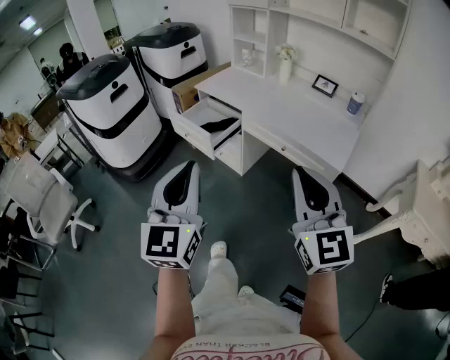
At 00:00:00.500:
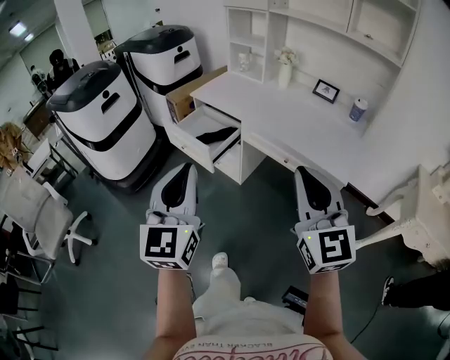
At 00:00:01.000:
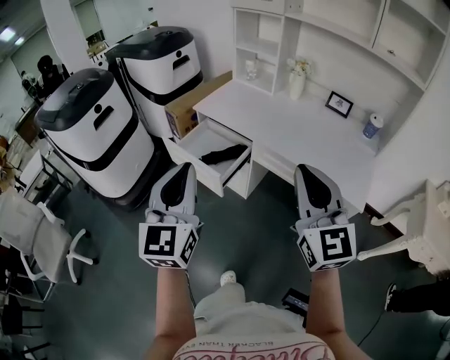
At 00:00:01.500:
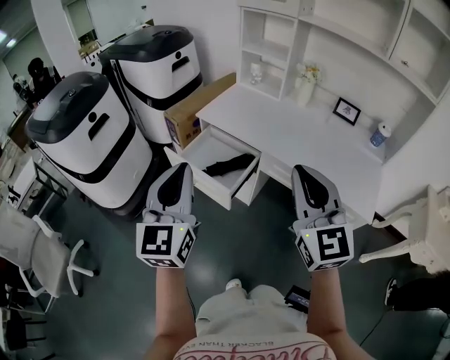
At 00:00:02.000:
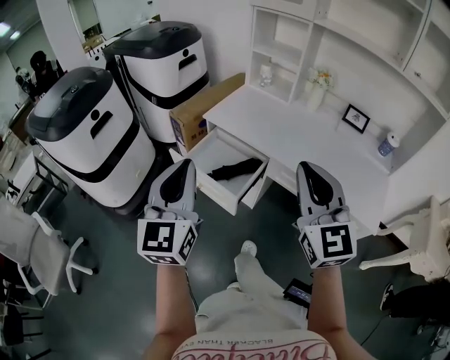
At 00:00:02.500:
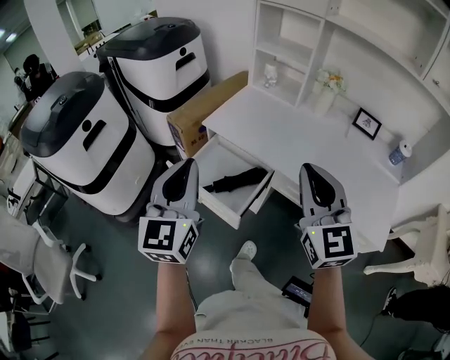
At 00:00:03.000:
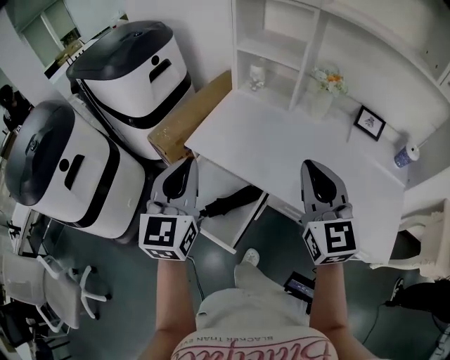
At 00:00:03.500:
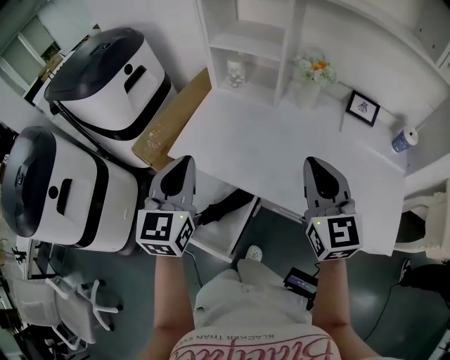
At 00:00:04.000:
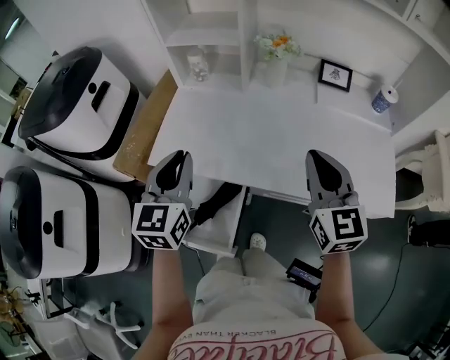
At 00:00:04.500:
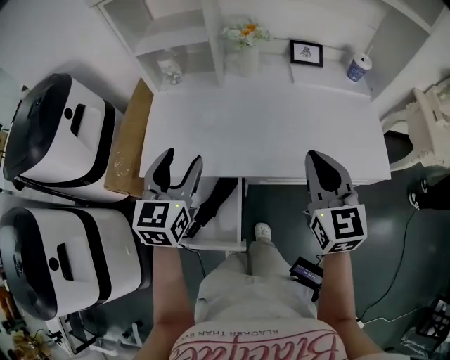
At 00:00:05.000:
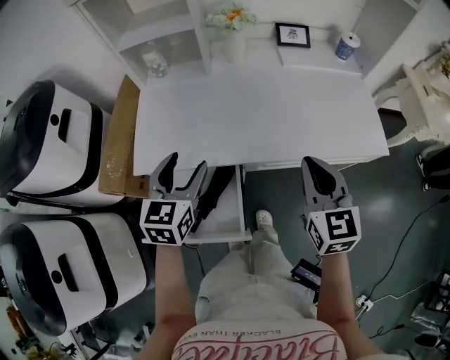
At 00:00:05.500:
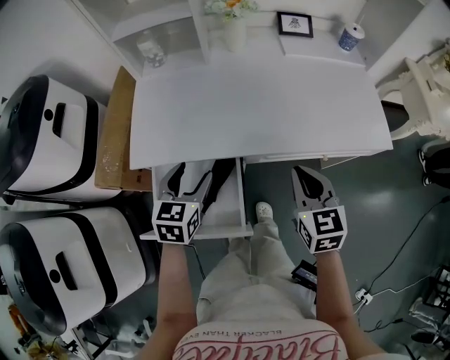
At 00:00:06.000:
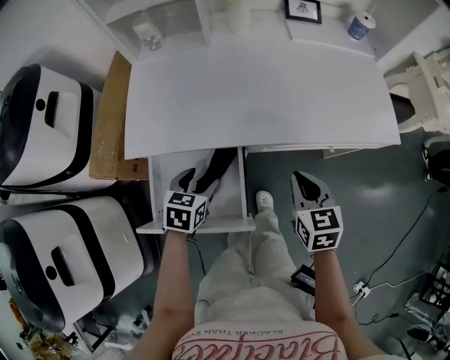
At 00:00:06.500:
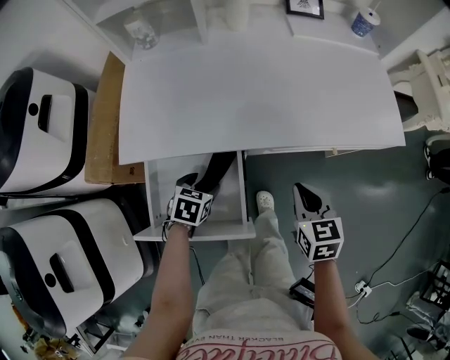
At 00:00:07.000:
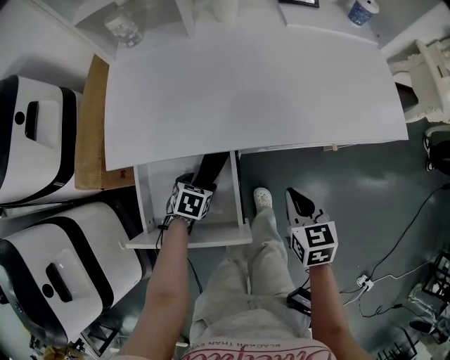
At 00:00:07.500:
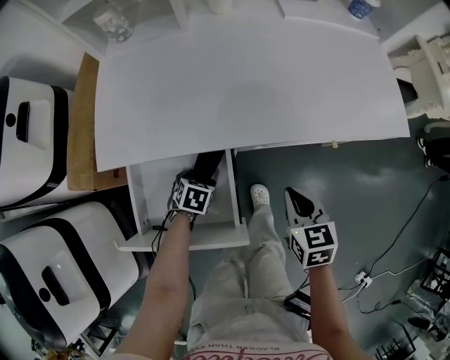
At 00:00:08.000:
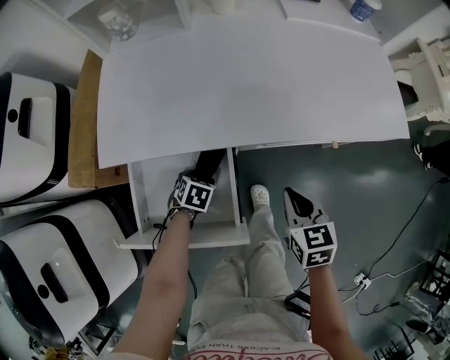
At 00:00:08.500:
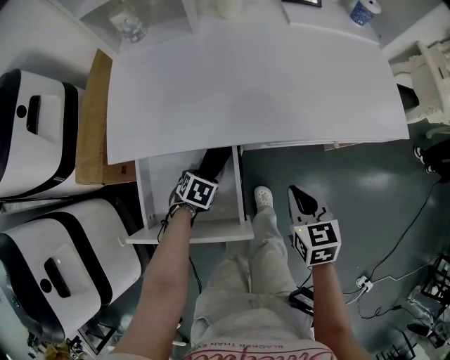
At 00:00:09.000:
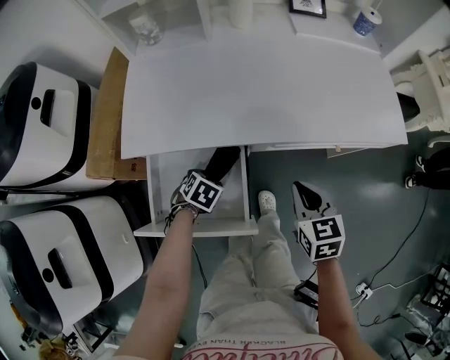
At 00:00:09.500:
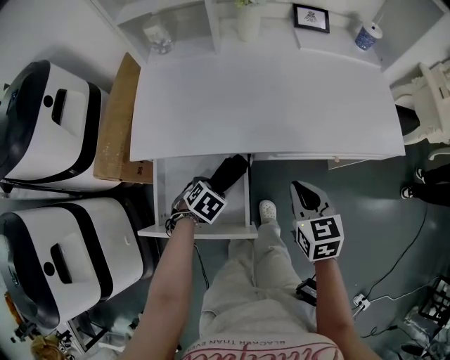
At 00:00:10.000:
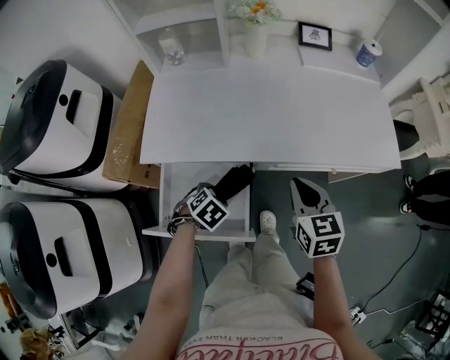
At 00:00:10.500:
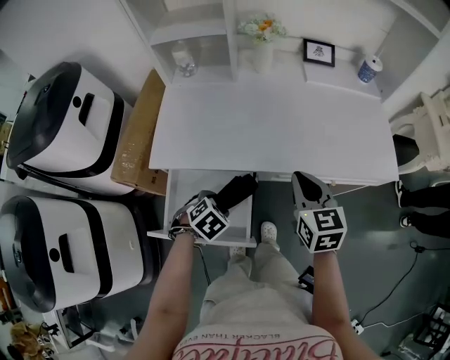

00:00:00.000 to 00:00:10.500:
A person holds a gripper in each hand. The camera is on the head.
00:00:00.000 to 00:00:02.000: The grippers both shift forward and to the left by about 40 cm.
00:00:02.000 to 00:00:04.000: The right gripper is displaced forward, to the right and downward by roughly 30 cm, and swivels about 30 degrees, while the left gripper travels forward by roughly 35 cm, and swivels roughly 30 degrees.
00:00:04.000 to 00:00:06.500: Both grippers travel together downward, roughly 30 cm. The right gripper tips its fingers downward by about 30 degrees, while the left gripper tips its fingers downward by about 50 degrees, and opens up.
00:00:06.500 to 00:00:08.500: The left gripper goes some 10 cm downward.
00:00:08.500 to 00:00:10.500: The grippers both shift upward by roughly 15 cm.

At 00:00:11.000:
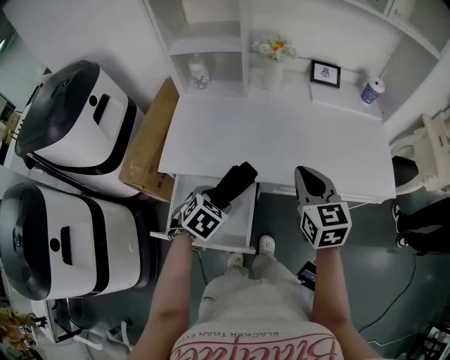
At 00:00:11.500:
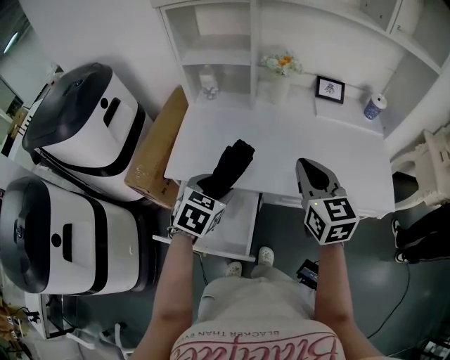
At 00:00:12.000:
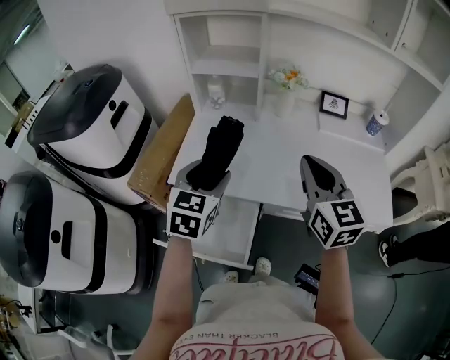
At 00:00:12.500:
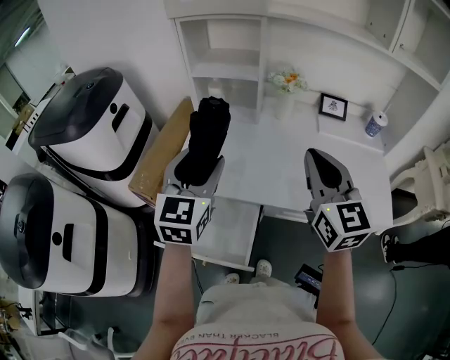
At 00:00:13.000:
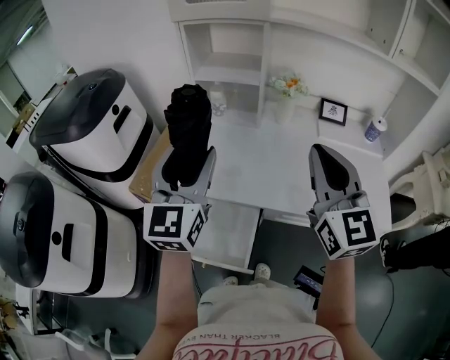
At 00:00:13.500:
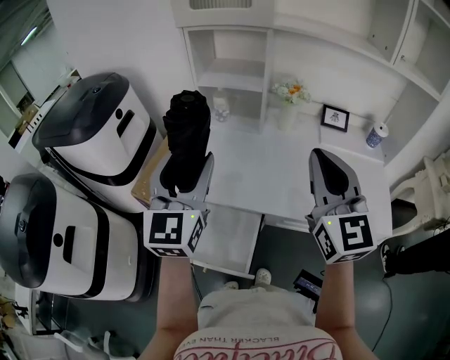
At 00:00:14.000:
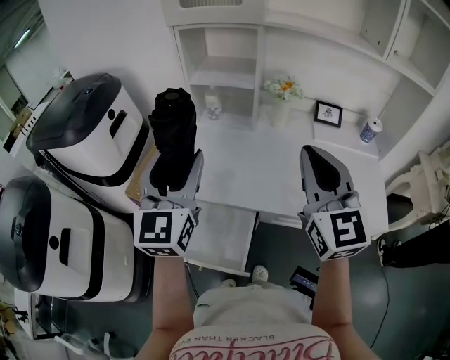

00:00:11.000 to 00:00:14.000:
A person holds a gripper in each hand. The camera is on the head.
00:00:11.000 to 00:00:12.500: The right gripper is displaced upward by roughly 15 cm, and swivels roughly 20 degrees; the left gripper is displaced upward by some 25 cm, and points its fingers approximately 50 degrees further upward.
00:00:12.500 to 00:00:14.000: The two grippers go approximately 5 cm upward.

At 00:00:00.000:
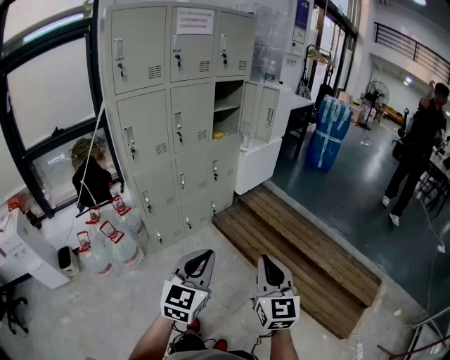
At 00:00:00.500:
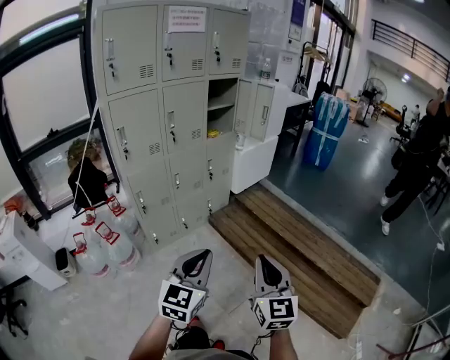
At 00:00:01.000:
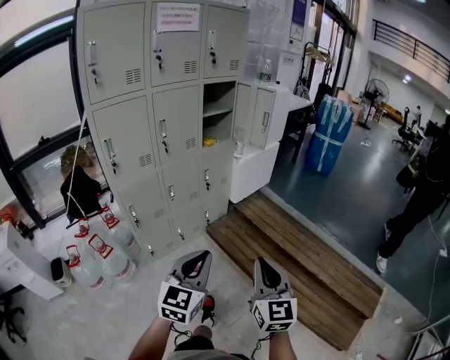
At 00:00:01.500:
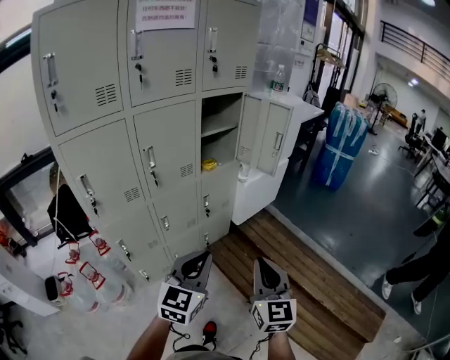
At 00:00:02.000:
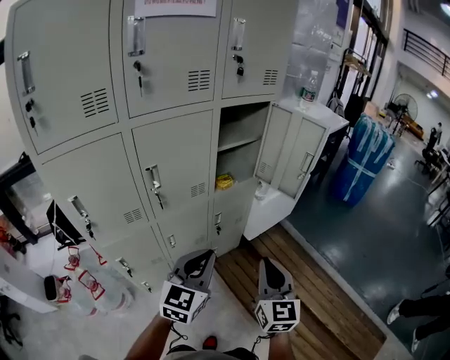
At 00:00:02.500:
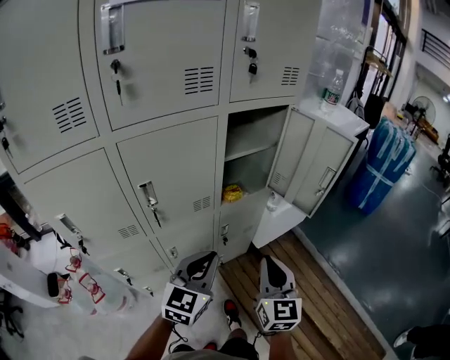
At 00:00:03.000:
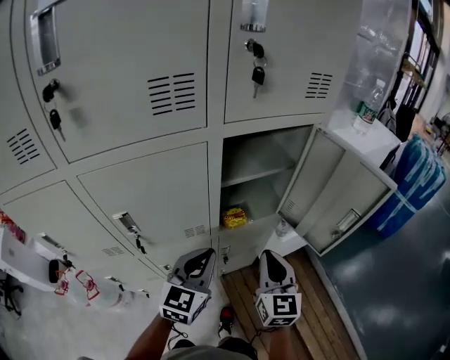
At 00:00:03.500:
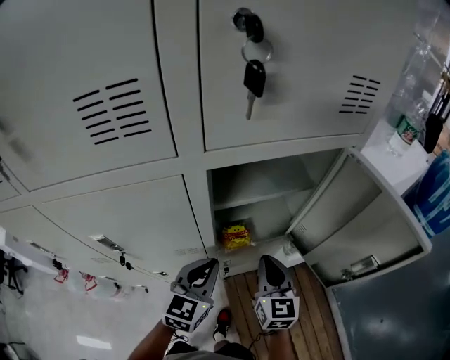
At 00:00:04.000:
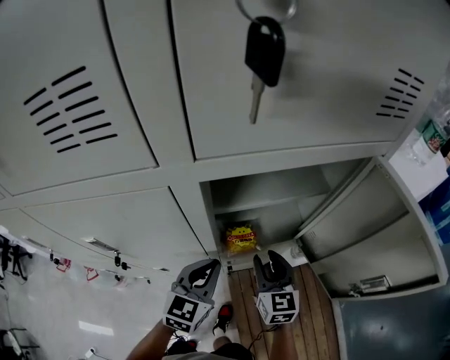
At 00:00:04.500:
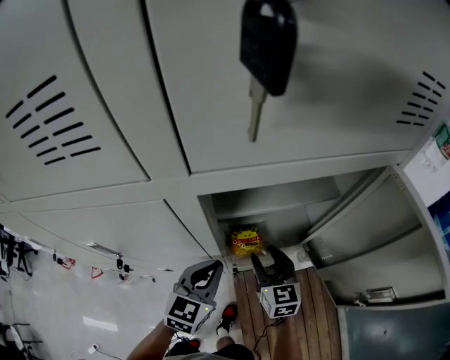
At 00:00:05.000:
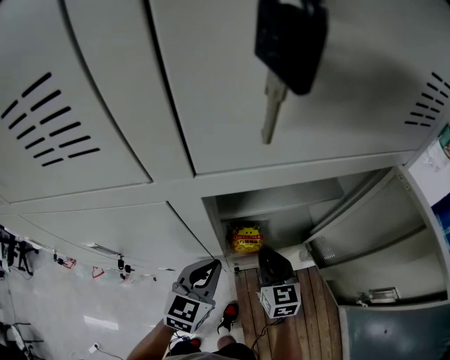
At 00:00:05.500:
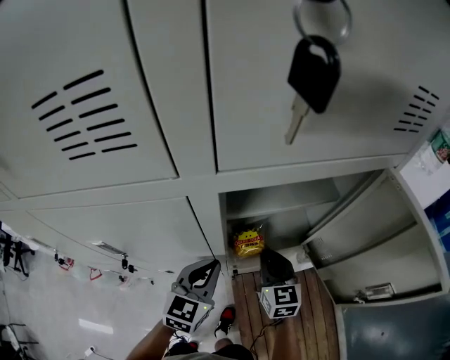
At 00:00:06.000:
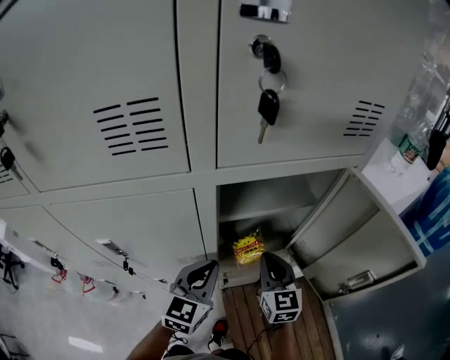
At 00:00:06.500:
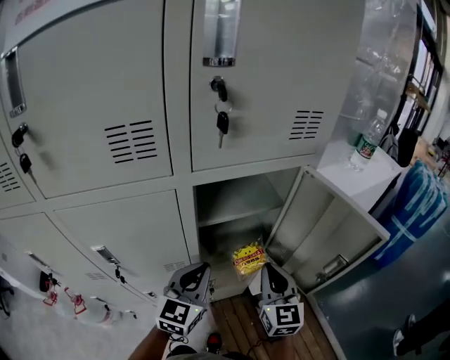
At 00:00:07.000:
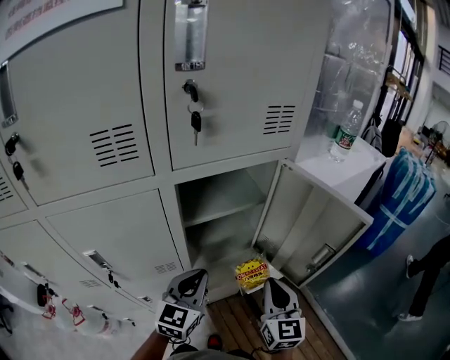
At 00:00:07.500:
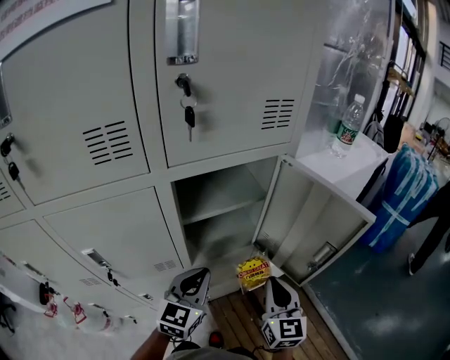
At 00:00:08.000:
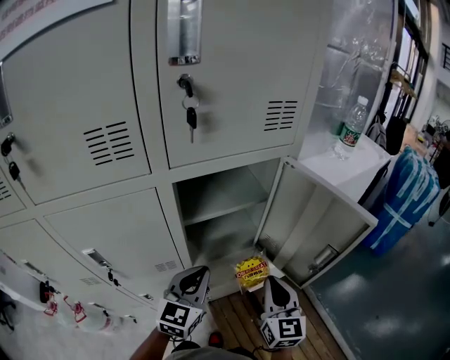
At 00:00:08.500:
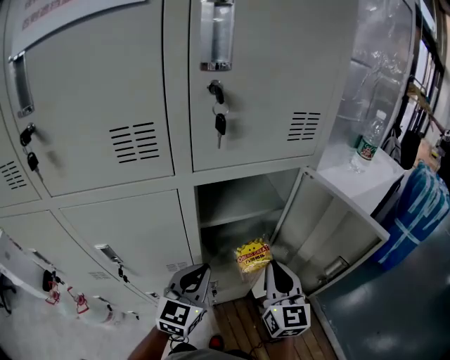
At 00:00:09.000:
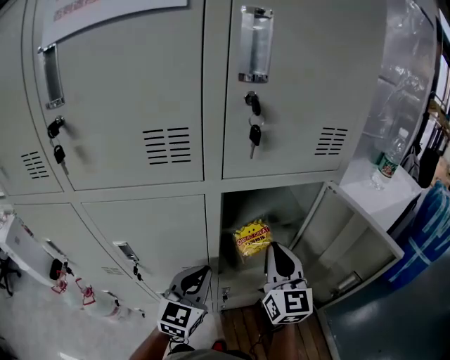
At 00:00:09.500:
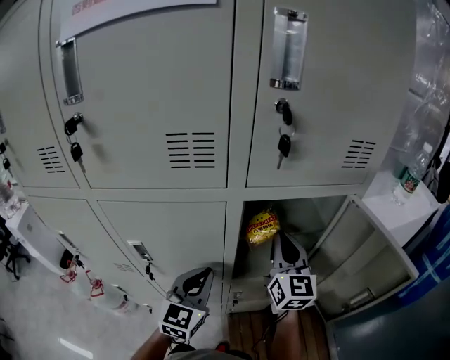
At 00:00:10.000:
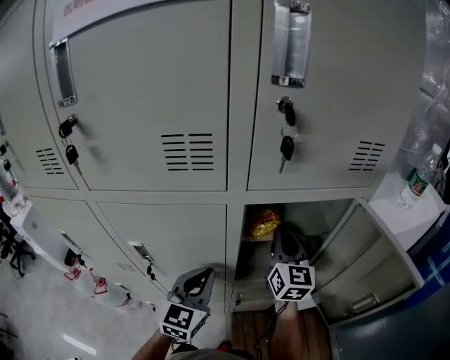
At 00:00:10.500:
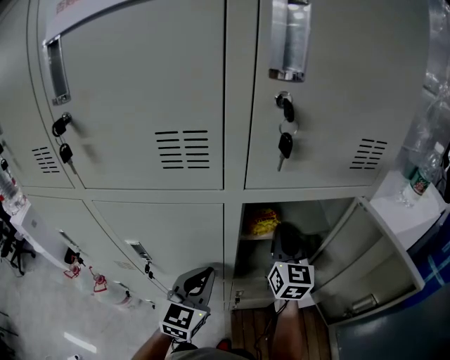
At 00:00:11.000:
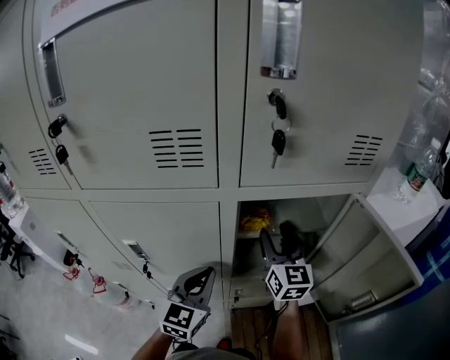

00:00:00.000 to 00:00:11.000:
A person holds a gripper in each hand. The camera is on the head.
00:00:00.000 to 00:00:02.000: The two grippers travel together, forward, some 50 cm.
00:00:02.000 to 00:00:03.500: The grippers both shift forward by roughly 35 cm. The right gripper turns by about 20 degrees. Meanwhile the left gripper swivels about 20 degrees.
00:00:03.500 to 00:00:05.500: The left gripper shifts by roughly 5 cm. The right gripper heads forward and downward, covering some 10 cm, and opens, then closes again.
00:00:05.500 to 00:00:07.500: The left gripper heads to the right and upward, covering approximately 10 cm; the right gripper is displaced to the right, backward and upward by roughly 25 cm, and swivels some 30 degrees.
00:00:07.500 to 00:00:09.000: The right gripper is displaced to the left, upward and forward by roughly 20 cm. The left gripper shifts roughly 10 cm to the left.
00:00:09.000 to 00:00:11.000: The right gripper moves forward, approximately 10 cm, and opens up.

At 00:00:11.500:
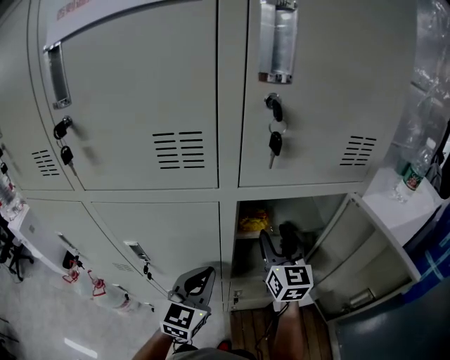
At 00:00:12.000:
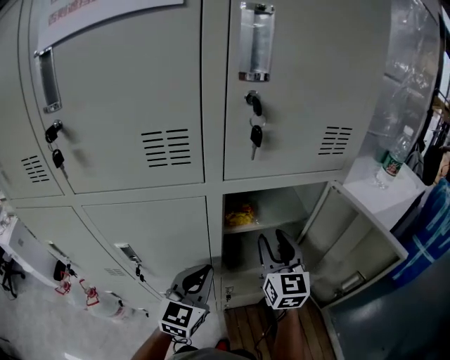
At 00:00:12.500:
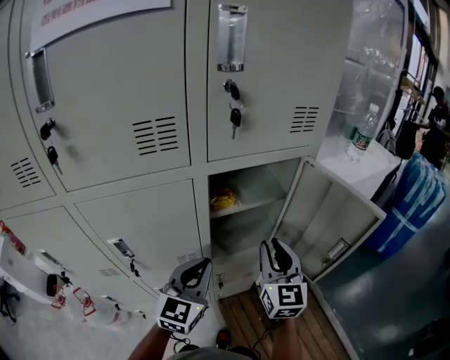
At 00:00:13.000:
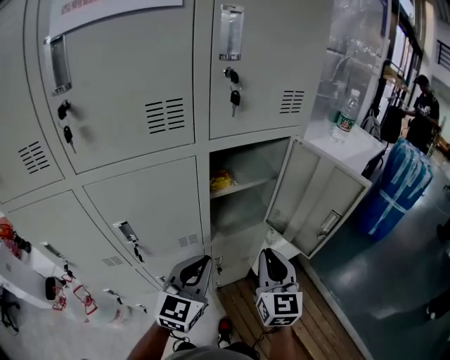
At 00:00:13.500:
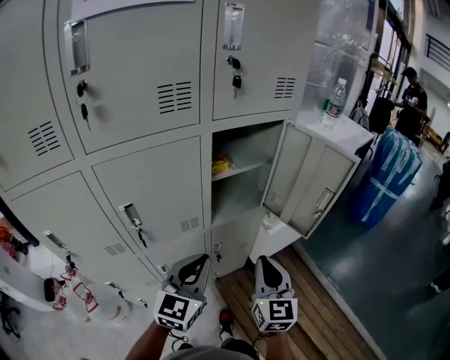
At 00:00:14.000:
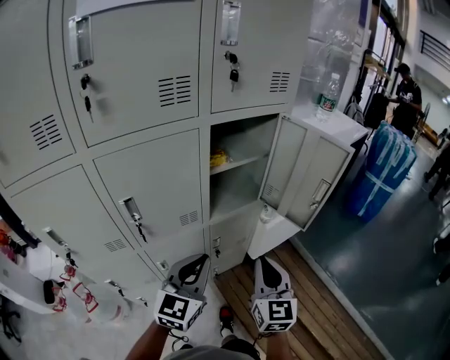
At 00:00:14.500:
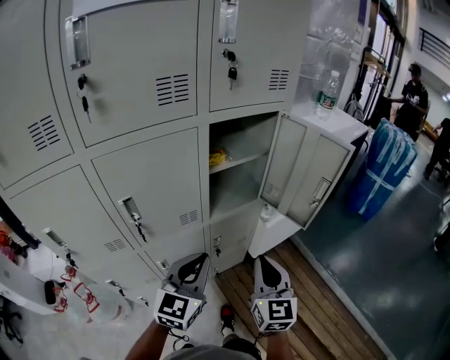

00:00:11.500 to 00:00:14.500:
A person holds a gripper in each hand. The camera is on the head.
00:00:11.500 to 00:00:13.000: The right gripper heads backward, covering some 25 cm, swivels roughly 20 degrees, and closes. Meanwhile the left gripper shifts roughly 10 cm backward, and changes its angle by about 20 degrees.
00:00:13.000 to 00:00:14.500: The two grippers go approximately 10 cm backward.
